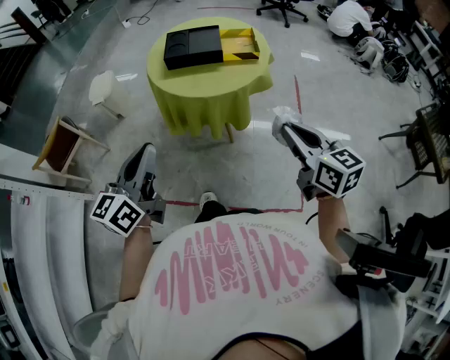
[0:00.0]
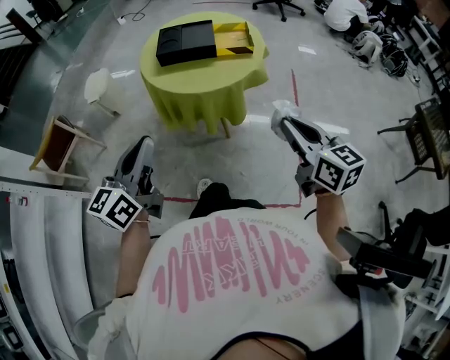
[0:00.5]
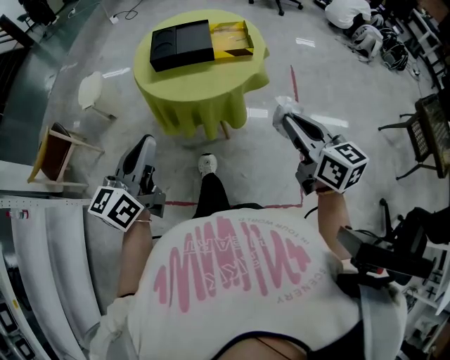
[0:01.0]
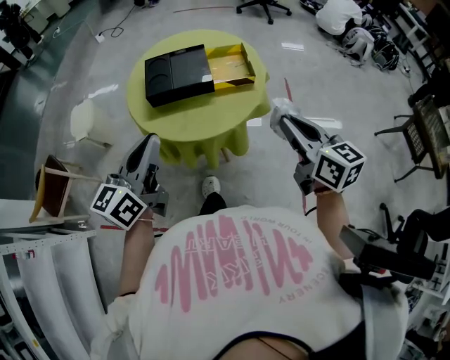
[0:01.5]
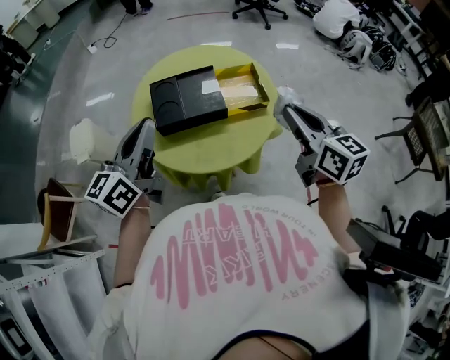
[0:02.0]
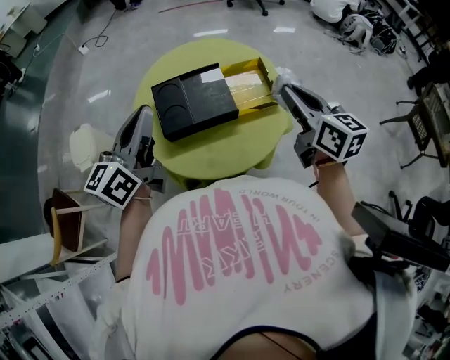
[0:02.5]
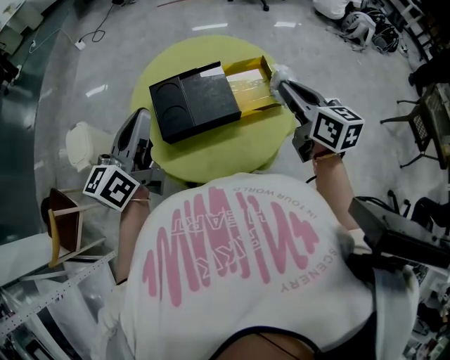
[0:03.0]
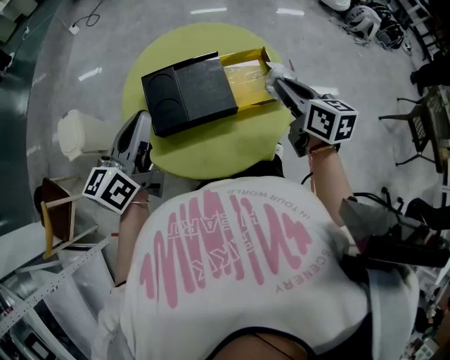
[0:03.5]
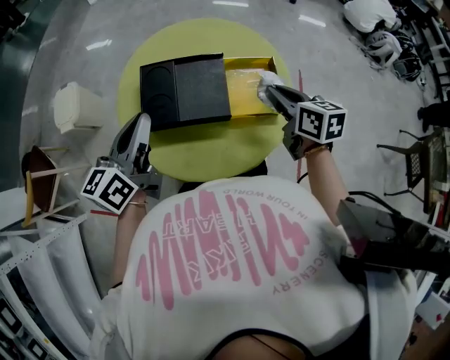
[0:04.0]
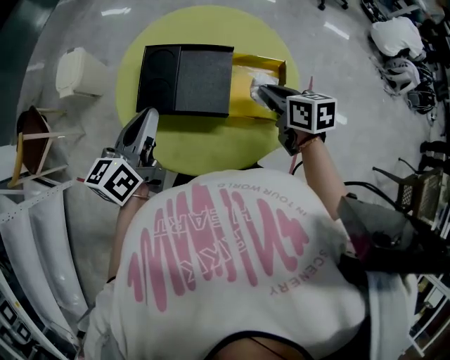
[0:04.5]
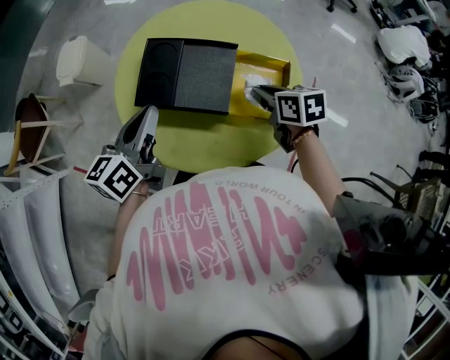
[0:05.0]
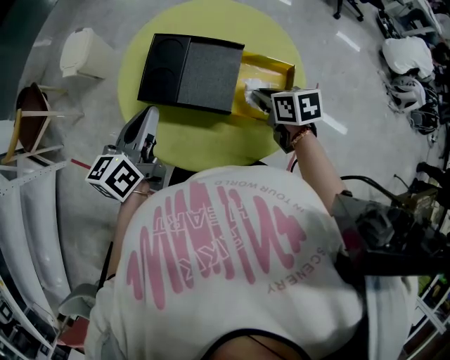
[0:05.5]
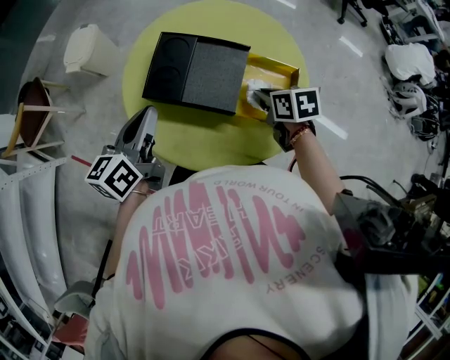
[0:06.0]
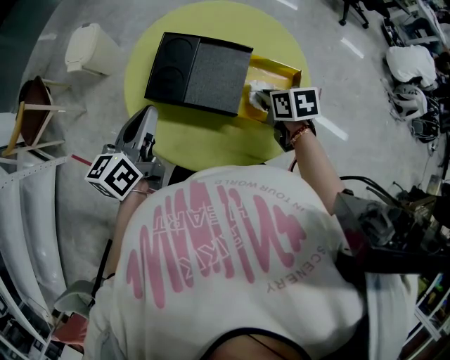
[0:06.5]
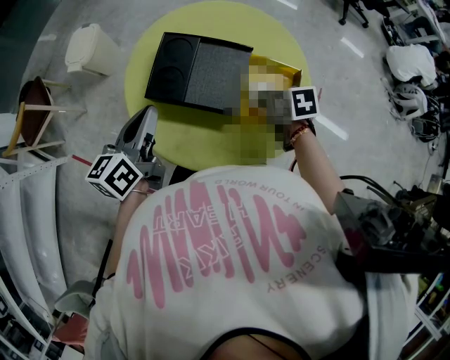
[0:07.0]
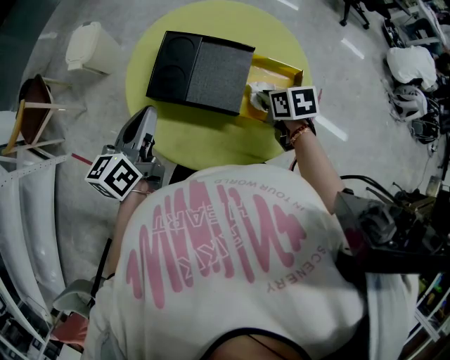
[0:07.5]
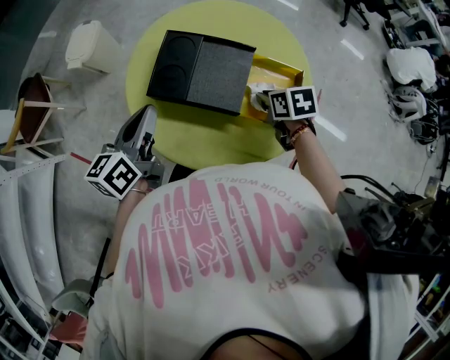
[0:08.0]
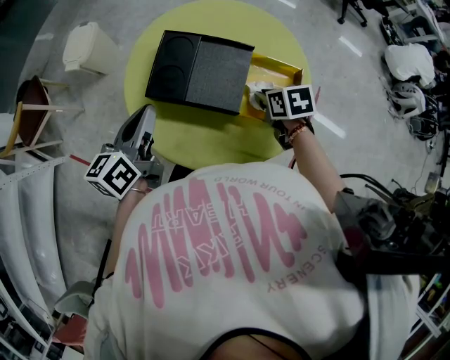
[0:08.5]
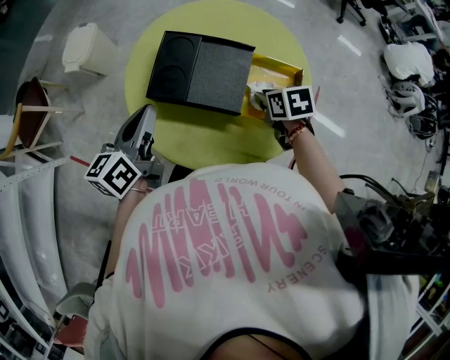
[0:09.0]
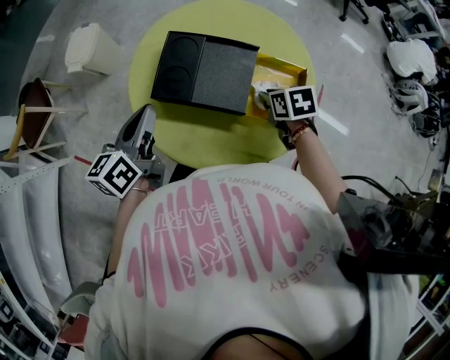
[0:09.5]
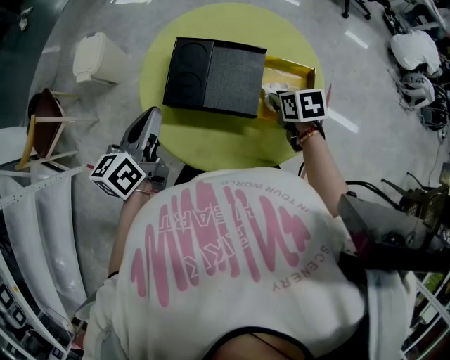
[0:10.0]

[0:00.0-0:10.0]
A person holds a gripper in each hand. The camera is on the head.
0:00.0 to 0:02.0: Both grippers travel together forward, about 35 cm.
0:02.0 to 0:04.0: The left gripper heads forward and downward, covering approximately 15 cm. Meanwhile the right gripper is displaced forward and downward by roughly 25 cm, and rotates about 20 degrees.
0:04.0 to 0:06.0: The right gripper shifts approximately 10 cm downward, and swivels about 30 degrees; the left gripper moves downward, approximately 5 cm.
0:06.0 to 0:10.0: The grippers stay close to where they were, moving slightly.

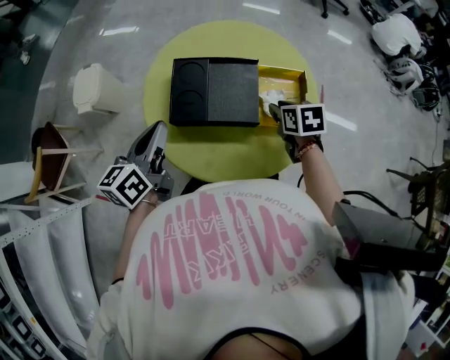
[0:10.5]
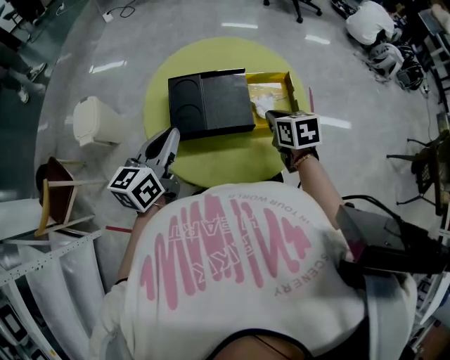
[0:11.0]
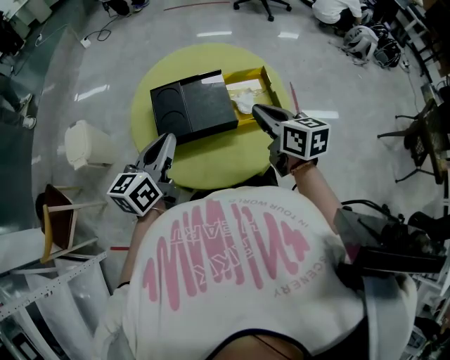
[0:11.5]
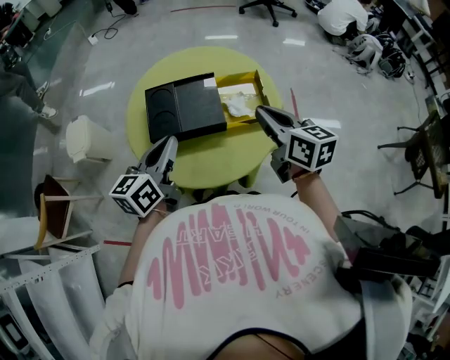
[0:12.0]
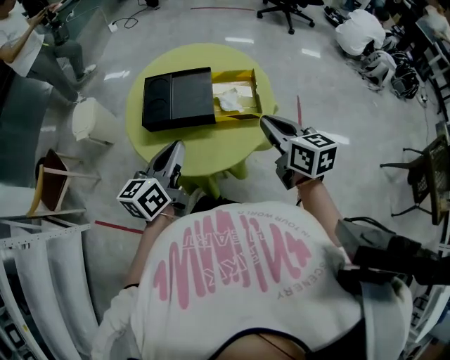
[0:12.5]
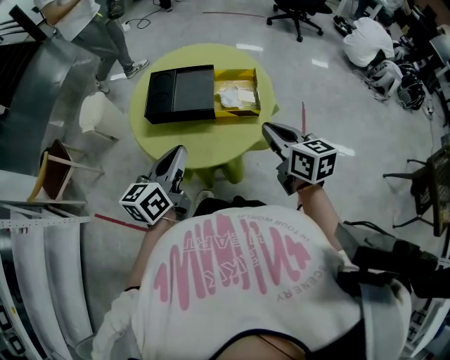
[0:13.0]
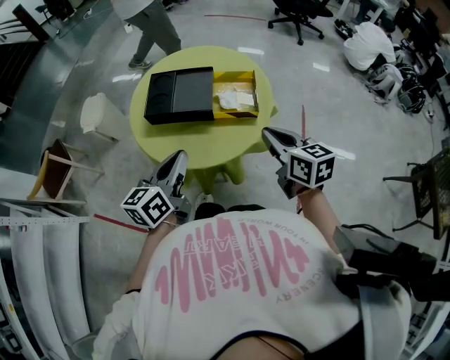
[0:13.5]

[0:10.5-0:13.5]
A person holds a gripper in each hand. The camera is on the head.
0:10.5 to 0:12.0: The left gripper goes some 10 cm to the right, while the right gripper shifts some 20 cm upward and backward, tilts its fingers about 40 degrees upward, and closes its fingers.
0:12.0 to 0:13.5: Both grippers travel together backward and to the right, about 15 cm.

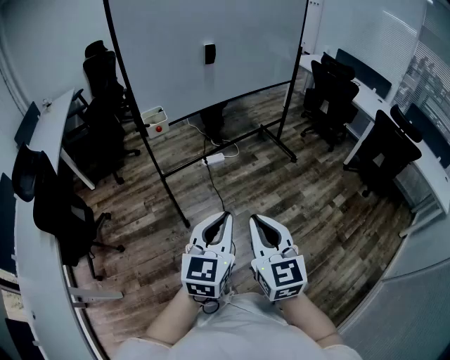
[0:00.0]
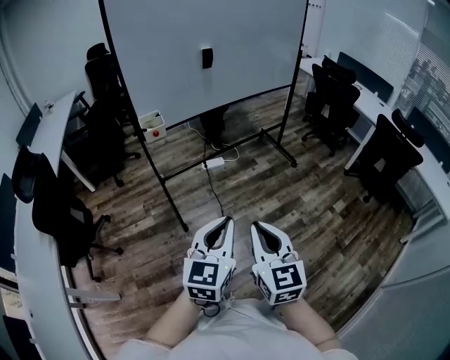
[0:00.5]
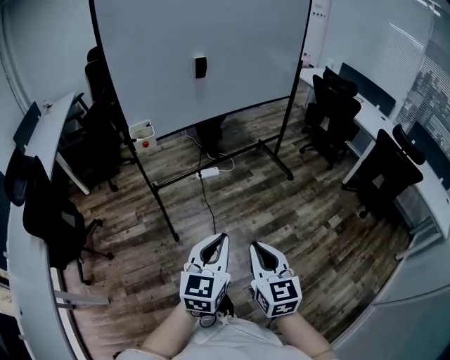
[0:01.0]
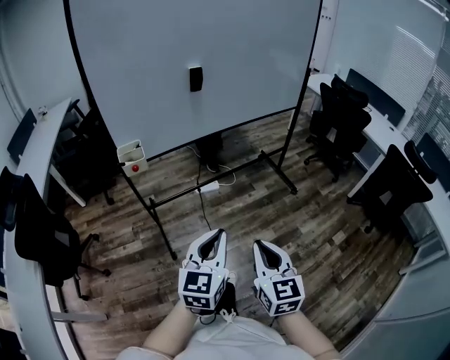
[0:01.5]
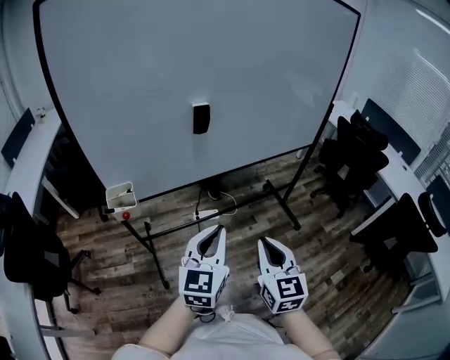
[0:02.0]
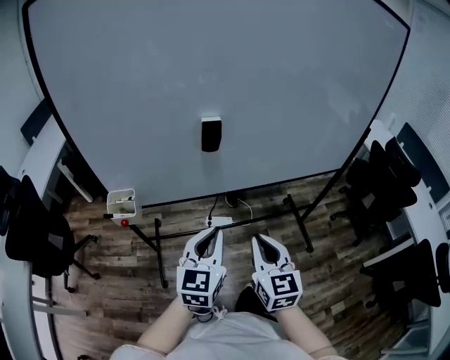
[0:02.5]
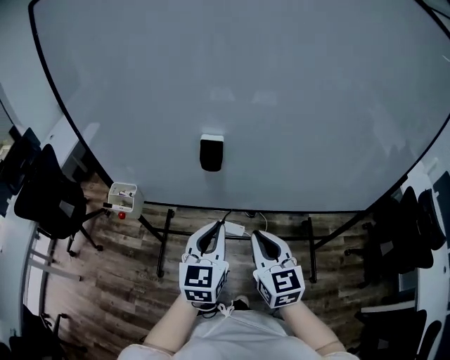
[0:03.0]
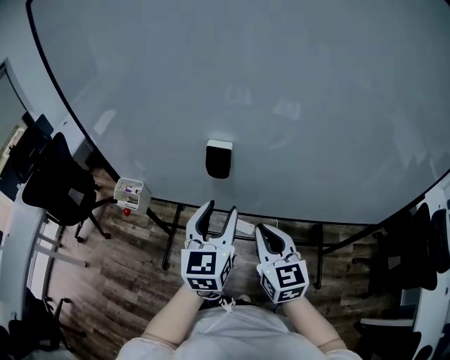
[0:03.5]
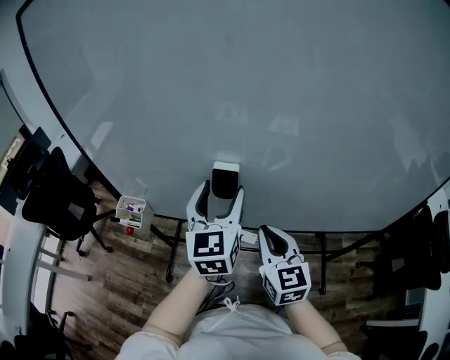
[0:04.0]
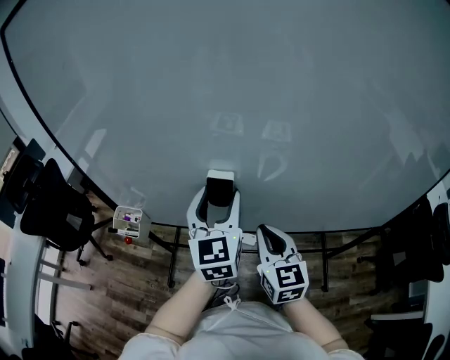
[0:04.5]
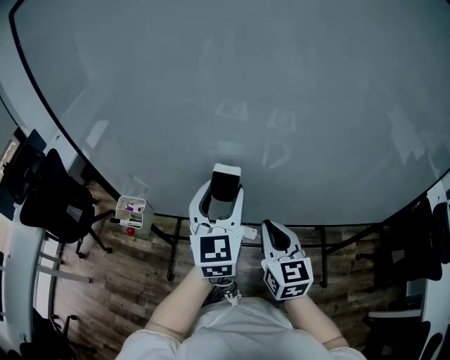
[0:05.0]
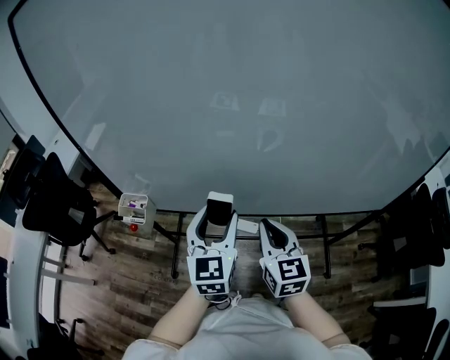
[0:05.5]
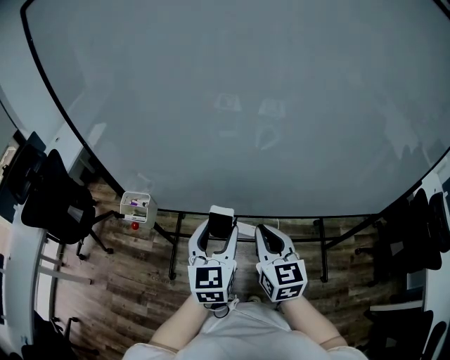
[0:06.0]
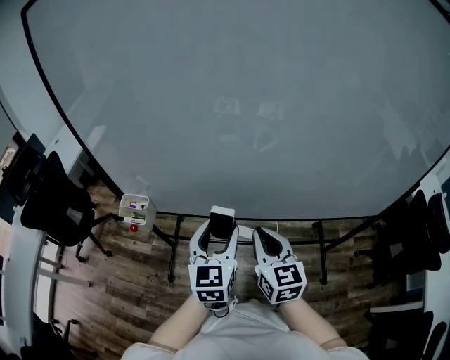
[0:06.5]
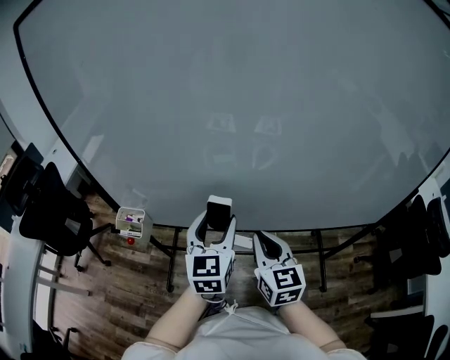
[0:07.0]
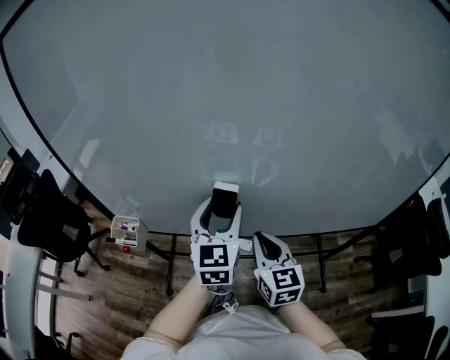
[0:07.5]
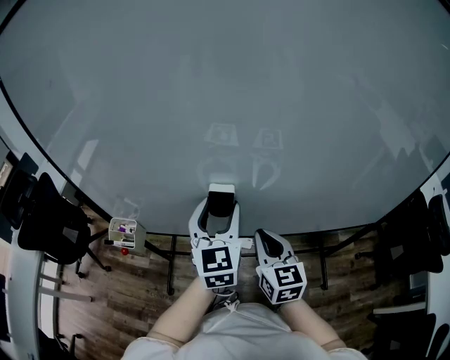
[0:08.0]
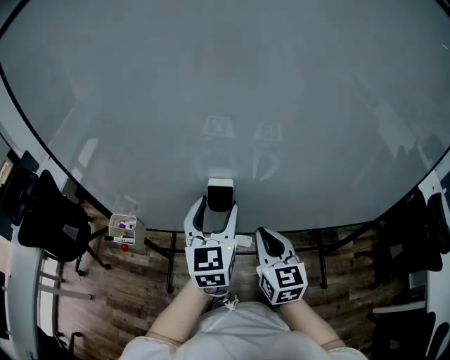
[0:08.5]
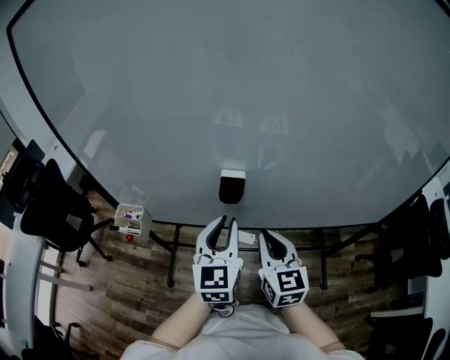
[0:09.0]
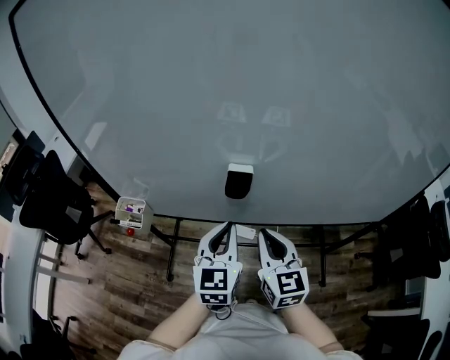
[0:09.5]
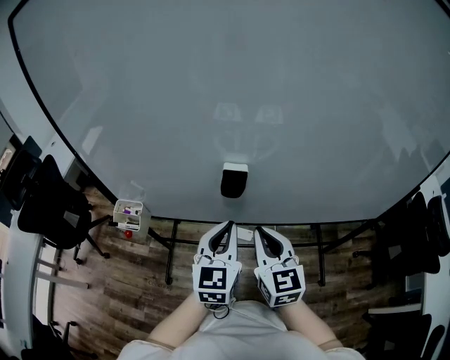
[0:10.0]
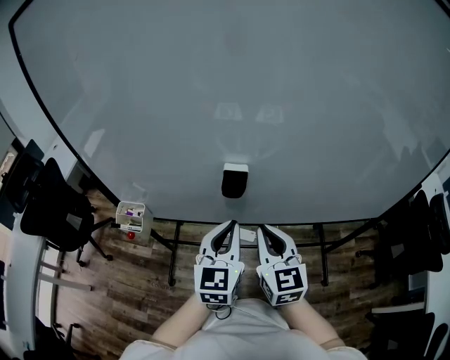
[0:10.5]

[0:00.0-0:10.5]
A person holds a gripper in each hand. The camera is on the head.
0:00.0 to 0:02.0: The pair of grippers is taken forward, some 40 cm.
0:02.0 to 0:04.0: The left gripper ends up about 35 cm from where it was, turns by about 40 degrees, and opens up. Meanwhile the right gripper shifts by some 35 cm, and turns by about 30 degrees.
0:04.0 to 0:06.5: The left gripper heads backward and downward, covering some 10 cm, while the right gripper moves roughly 5 cm.
0:06.5 to 0:08.5: The right gripper heads to the right, covering about 5 cm, while the left gripper goes about 10 cm forward and upward.
0:08.5 to 0:10.5: The left gripper is displaced backward and downward by about 10 cm, and closes up.

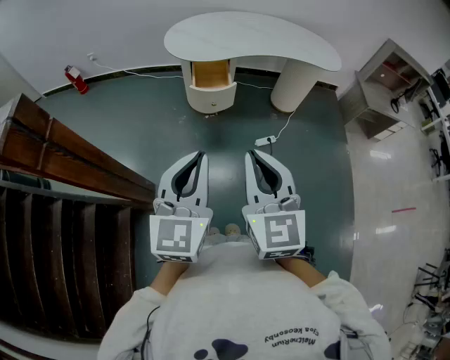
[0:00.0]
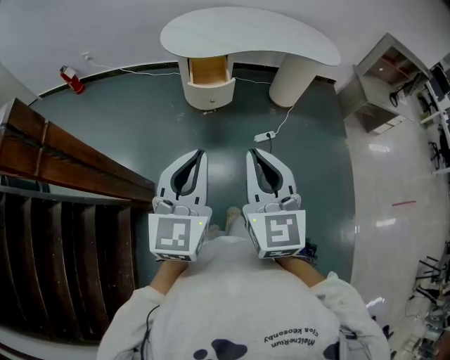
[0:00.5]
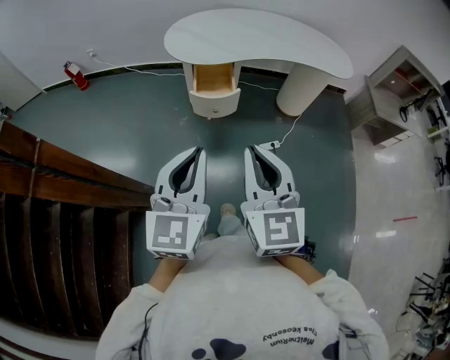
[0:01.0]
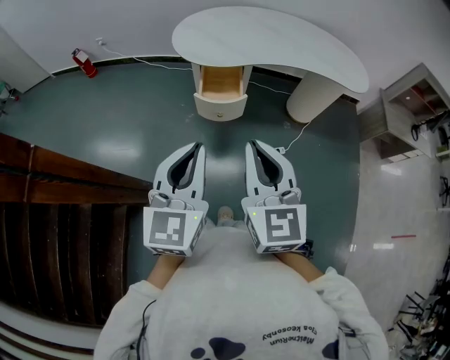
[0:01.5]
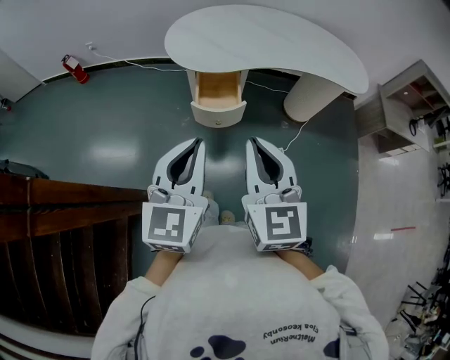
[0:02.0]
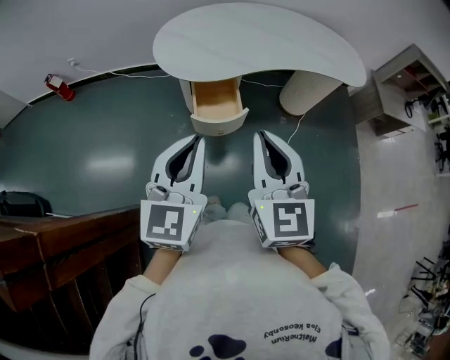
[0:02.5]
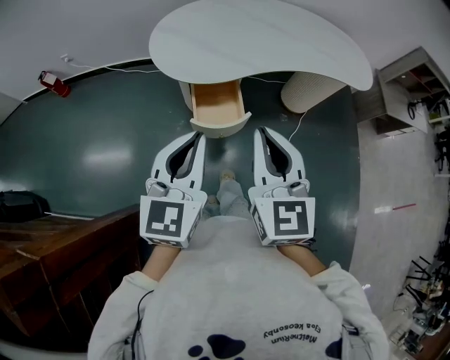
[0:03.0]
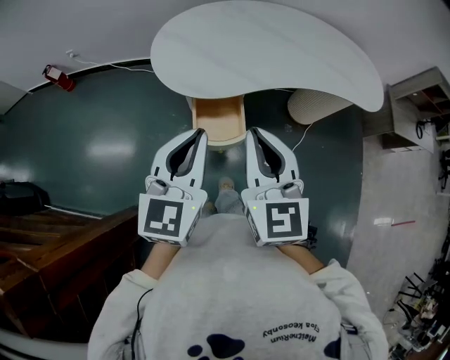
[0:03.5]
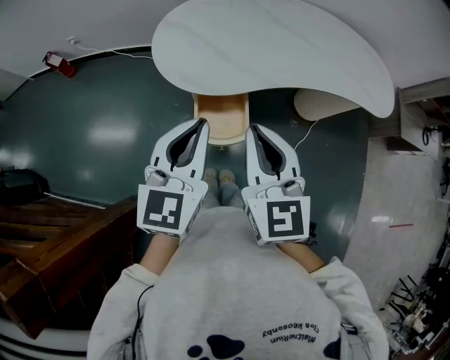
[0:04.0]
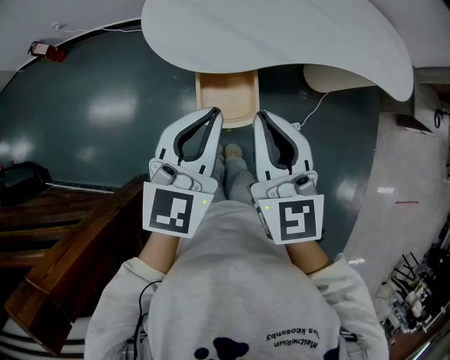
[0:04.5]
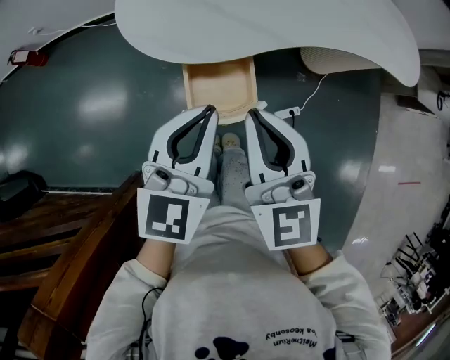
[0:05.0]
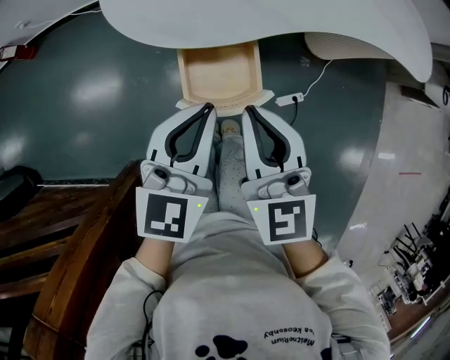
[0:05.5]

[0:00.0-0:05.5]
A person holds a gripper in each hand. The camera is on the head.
0:00.0 to 0:02.0: Both grippers travel together forward, some 25 cm.
0:02.0 to 0:03.5: The grippers both shift forward by about 20 cm.
0:03.5 to 0:05.5: The left gripper moves downward and forward, some 20 cm, while the right gripper heads downward, covering roughly 20 cm.
